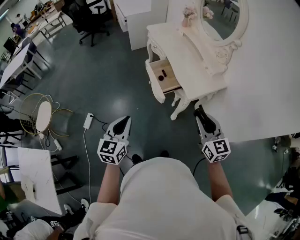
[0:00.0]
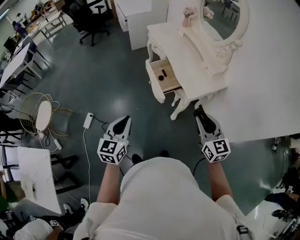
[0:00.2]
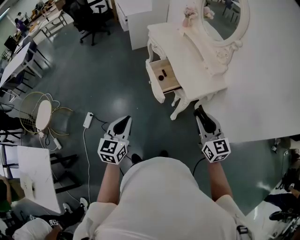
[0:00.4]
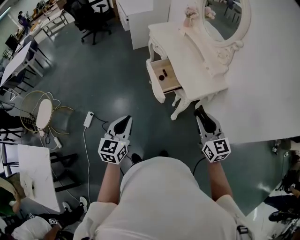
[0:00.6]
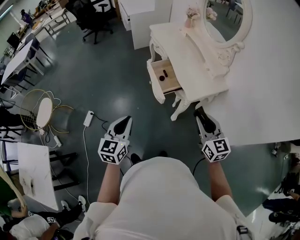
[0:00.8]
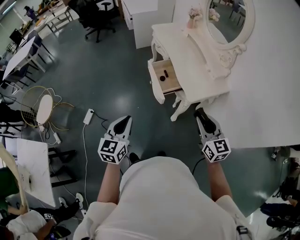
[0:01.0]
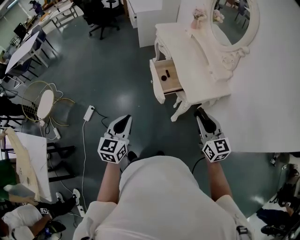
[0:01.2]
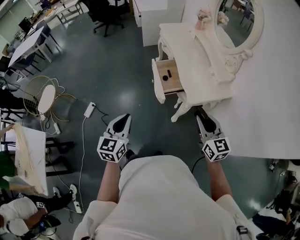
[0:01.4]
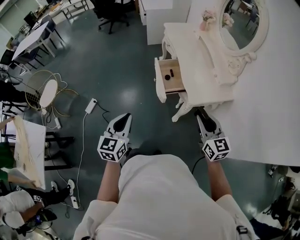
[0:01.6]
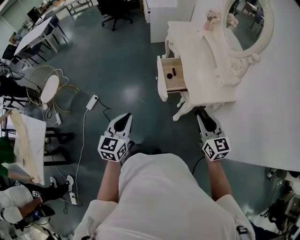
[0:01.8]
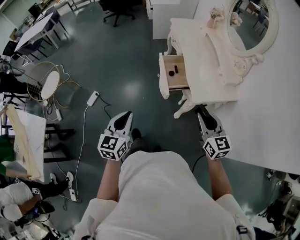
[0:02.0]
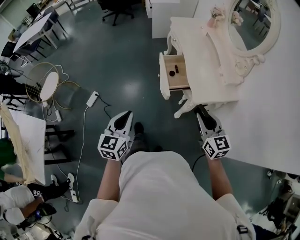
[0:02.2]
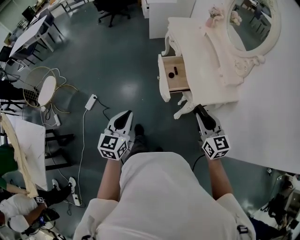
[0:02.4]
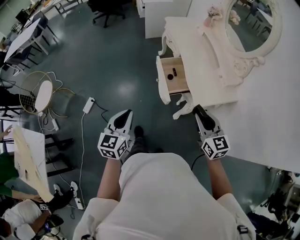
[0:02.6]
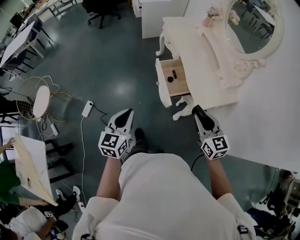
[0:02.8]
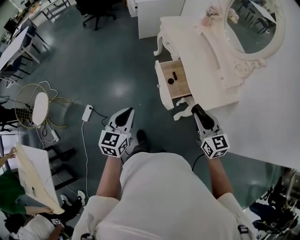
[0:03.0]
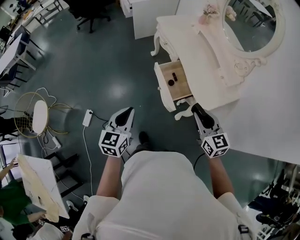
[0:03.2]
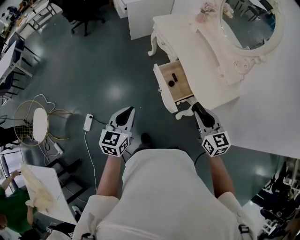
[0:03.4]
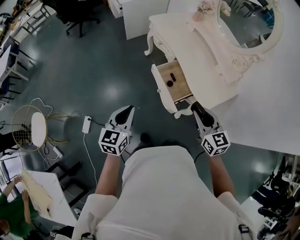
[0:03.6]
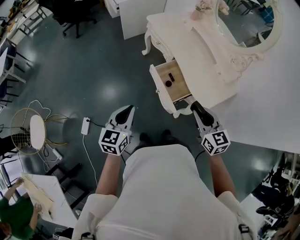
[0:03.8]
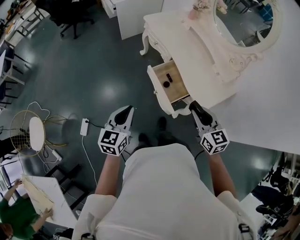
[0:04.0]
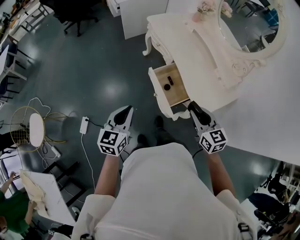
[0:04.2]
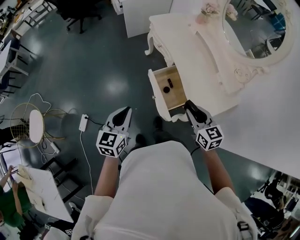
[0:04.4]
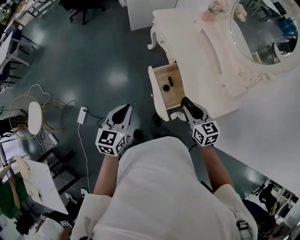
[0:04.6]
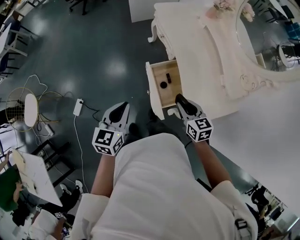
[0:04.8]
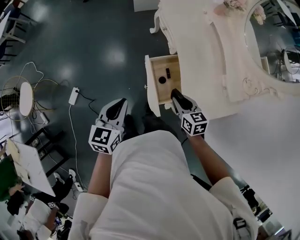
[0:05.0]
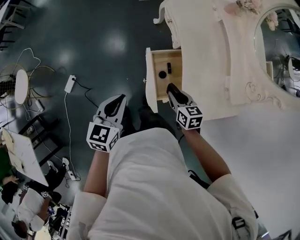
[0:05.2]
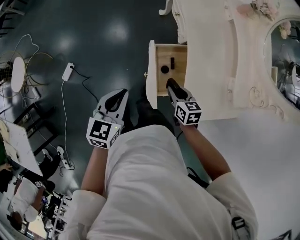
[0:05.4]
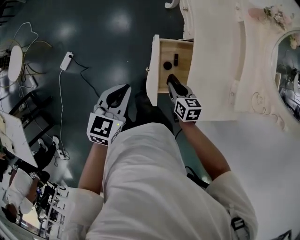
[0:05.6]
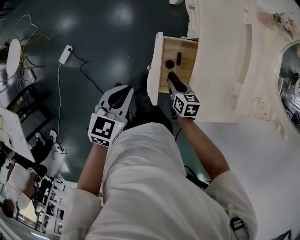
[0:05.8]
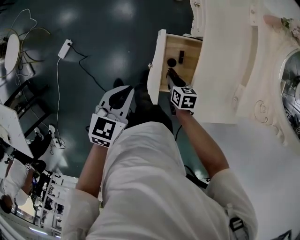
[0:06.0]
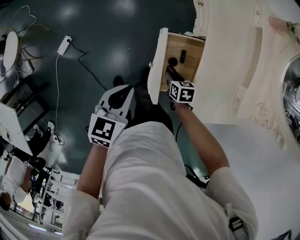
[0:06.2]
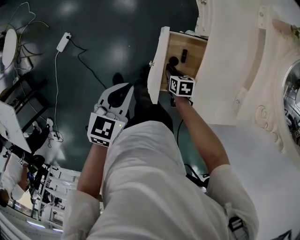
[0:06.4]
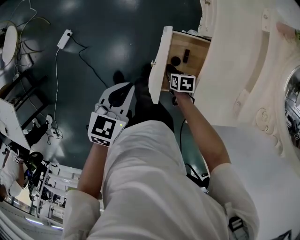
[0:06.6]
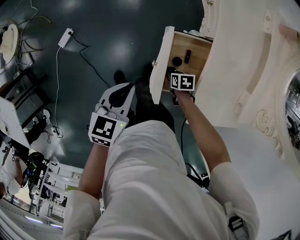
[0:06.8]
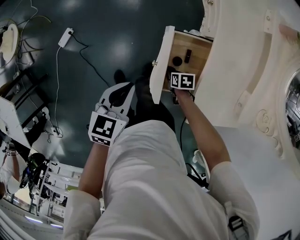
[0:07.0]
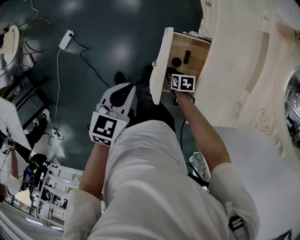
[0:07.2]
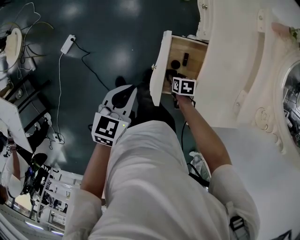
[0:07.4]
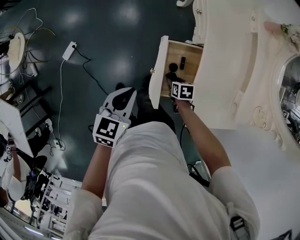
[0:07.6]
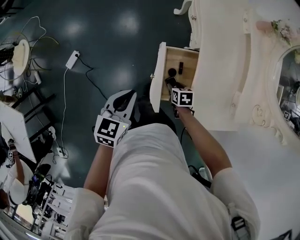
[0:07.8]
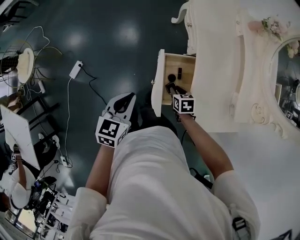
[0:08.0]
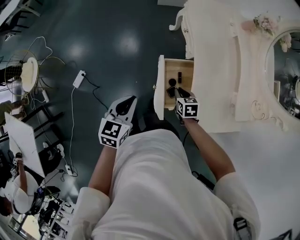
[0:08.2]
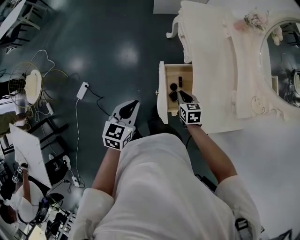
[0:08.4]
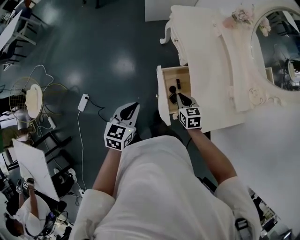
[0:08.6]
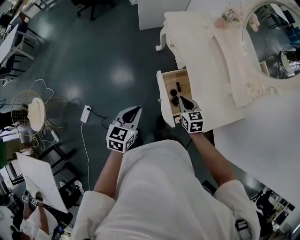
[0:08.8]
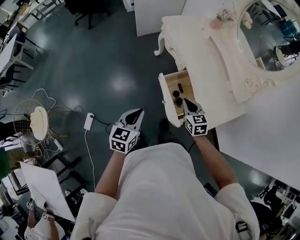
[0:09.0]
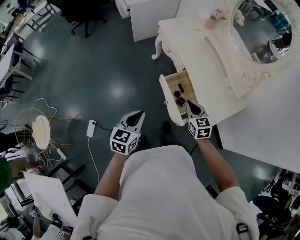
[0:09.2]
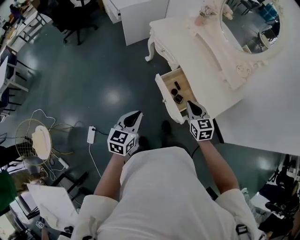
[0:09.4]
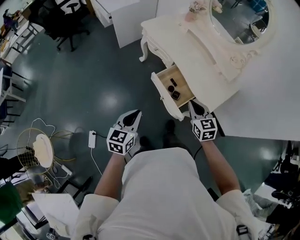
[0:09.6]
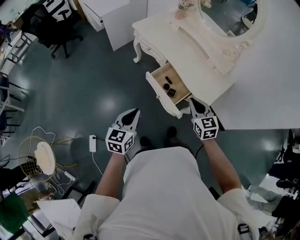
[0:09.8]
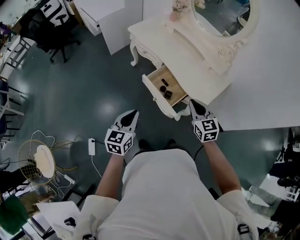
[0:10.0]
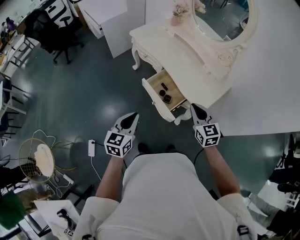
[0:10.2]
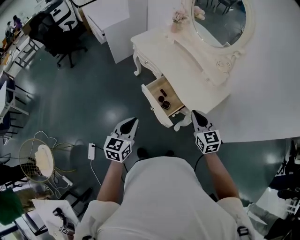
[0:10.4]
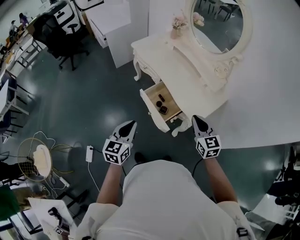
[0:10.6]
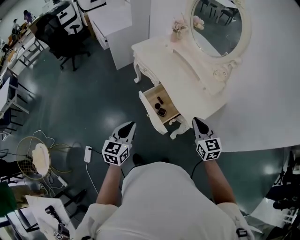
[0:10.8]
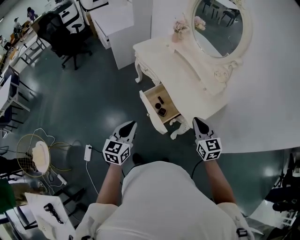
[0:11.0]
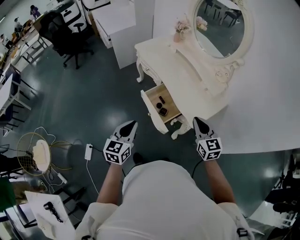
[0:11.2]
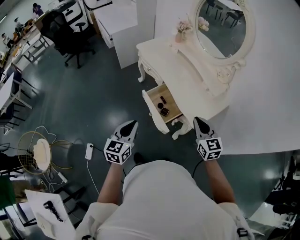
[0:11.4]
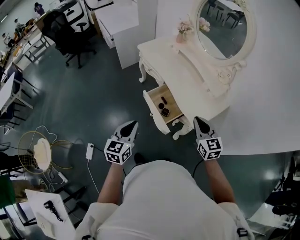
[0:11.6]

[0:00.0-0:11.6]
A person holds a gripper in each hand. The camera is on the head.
0.0 to 1.4 s: The right gripper changes place by approximately 5 cm.
1.4 to 2.8 s: The right gripper is displaced forward and to the left by approximately 10 cm. Meanwhile the left gripper heads forward, covering roughly 10 cm.
2.8 to 4.4 s: Both grippers move forward, approximately 15 cm.
4.4 to 5.8 s: The right gripper travels downward and forward by some 30 cm, and swivels some 40 degrees. Meanwhile the left gripper shifts some 15 cm downward and to the right, and changes its angle by some 20 degrees.
5.8 to 7.2 s: The right gripper heads downward, covering roughly 15 cm, and rotates some 30 degrees.
7.2 to 8.8 s: The left gripper heads upward, covering approximately 10 cm, and rotates some 20 degrees. The right gripper goes approximately 25 cm upward, tips its fingers upward by roughly 30 degrees, and closes its fingers.
8.8 to 10.2 s: The left gripper goes about 10 cm upward and backward, and swivels about 20 degrees. Meanwhile the right gripper heads upward, backward and to the right, covering about 20 cm, and turns by approximately 20 degrees.
10.2 to 11.6 s: The left gripper changes place by about 5 cm. Meanwhile the right gripper heads to the right, covering roughly 5 cm.

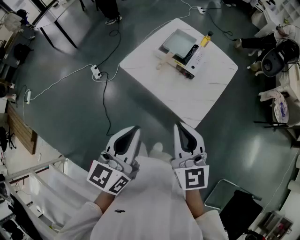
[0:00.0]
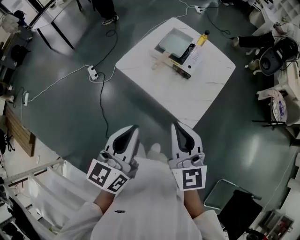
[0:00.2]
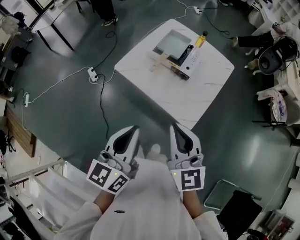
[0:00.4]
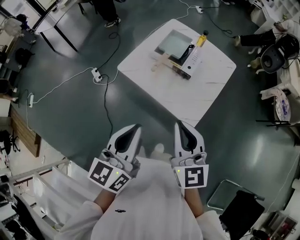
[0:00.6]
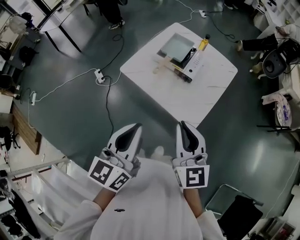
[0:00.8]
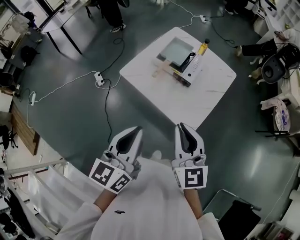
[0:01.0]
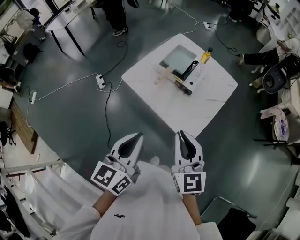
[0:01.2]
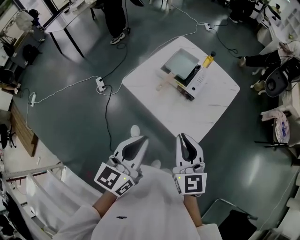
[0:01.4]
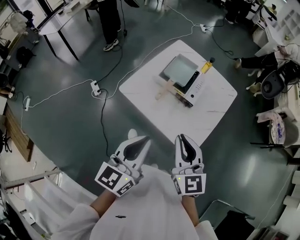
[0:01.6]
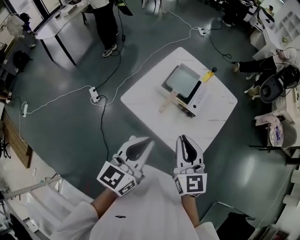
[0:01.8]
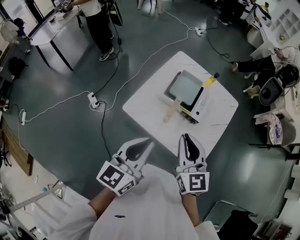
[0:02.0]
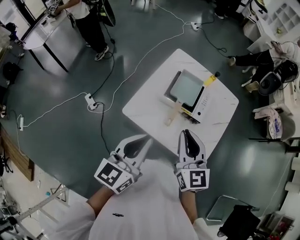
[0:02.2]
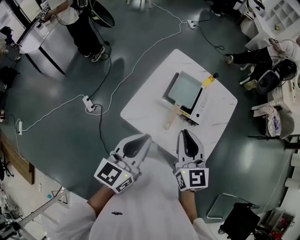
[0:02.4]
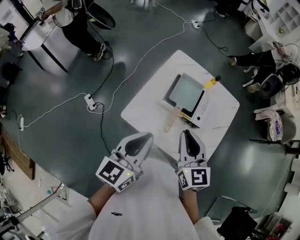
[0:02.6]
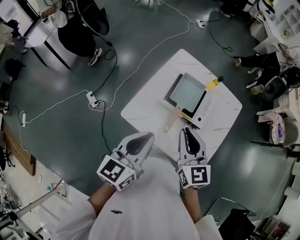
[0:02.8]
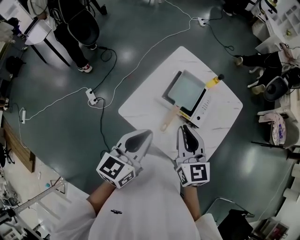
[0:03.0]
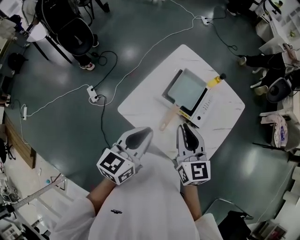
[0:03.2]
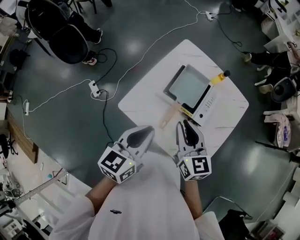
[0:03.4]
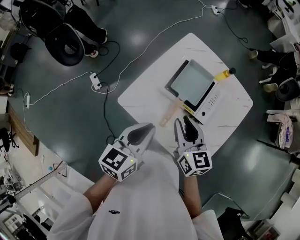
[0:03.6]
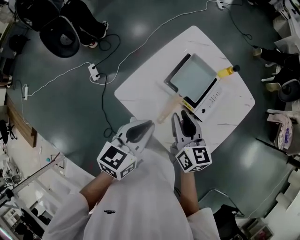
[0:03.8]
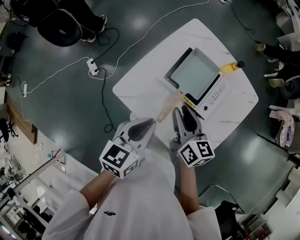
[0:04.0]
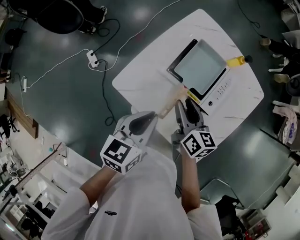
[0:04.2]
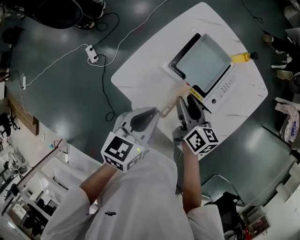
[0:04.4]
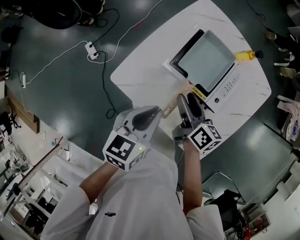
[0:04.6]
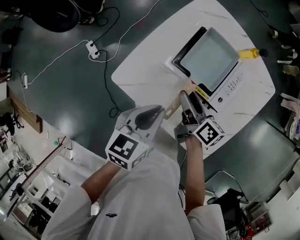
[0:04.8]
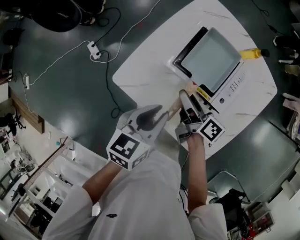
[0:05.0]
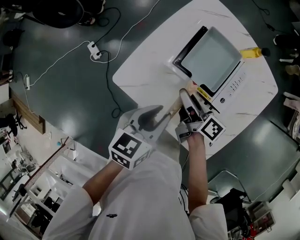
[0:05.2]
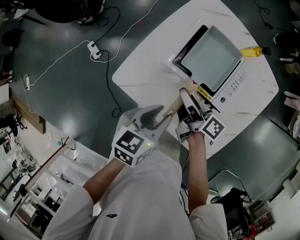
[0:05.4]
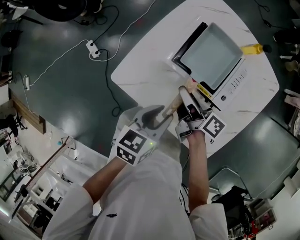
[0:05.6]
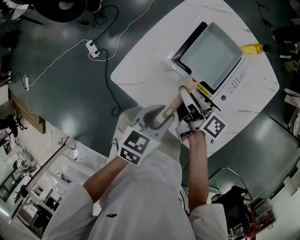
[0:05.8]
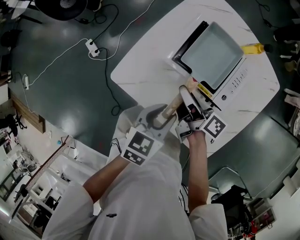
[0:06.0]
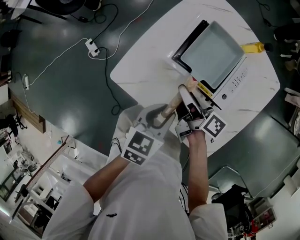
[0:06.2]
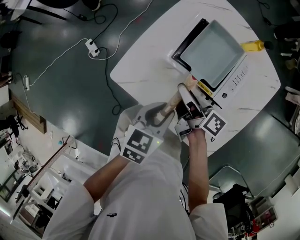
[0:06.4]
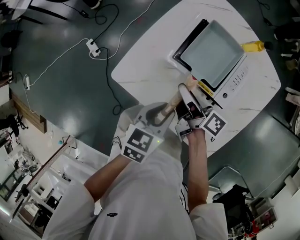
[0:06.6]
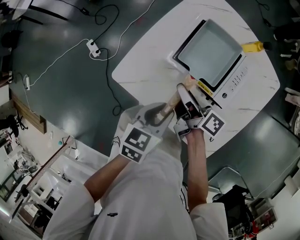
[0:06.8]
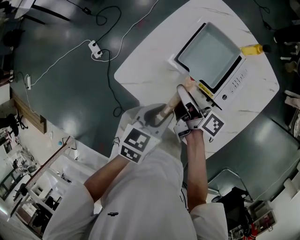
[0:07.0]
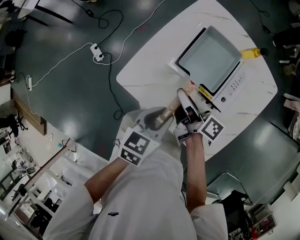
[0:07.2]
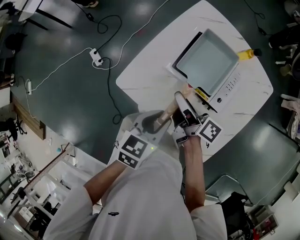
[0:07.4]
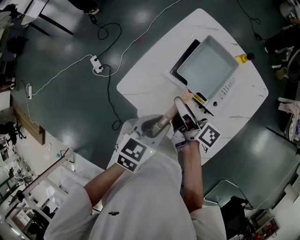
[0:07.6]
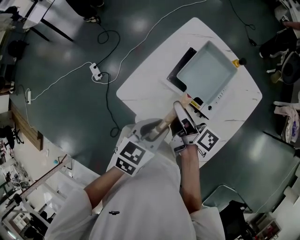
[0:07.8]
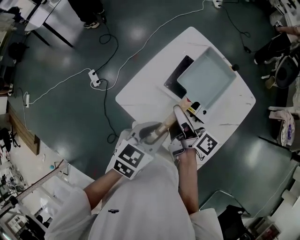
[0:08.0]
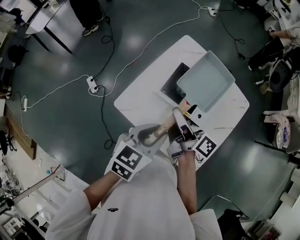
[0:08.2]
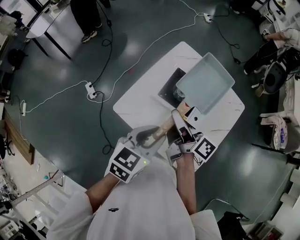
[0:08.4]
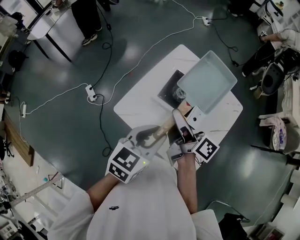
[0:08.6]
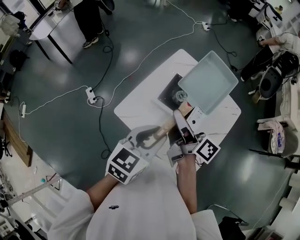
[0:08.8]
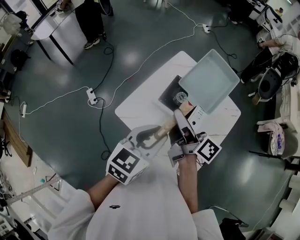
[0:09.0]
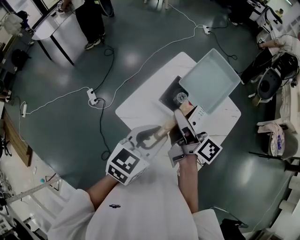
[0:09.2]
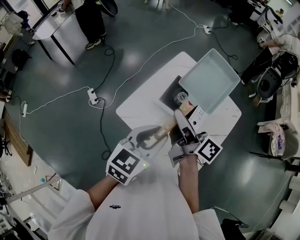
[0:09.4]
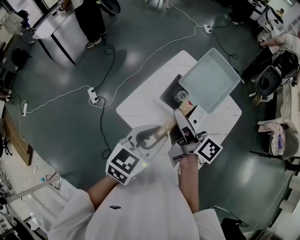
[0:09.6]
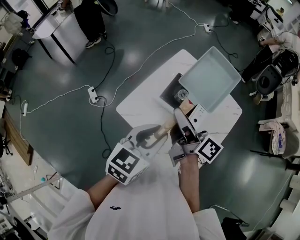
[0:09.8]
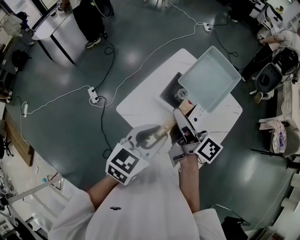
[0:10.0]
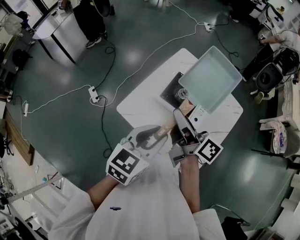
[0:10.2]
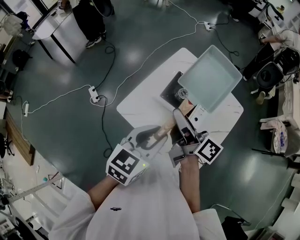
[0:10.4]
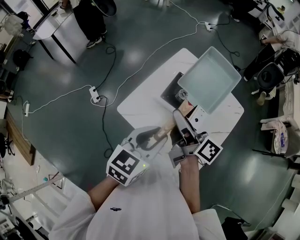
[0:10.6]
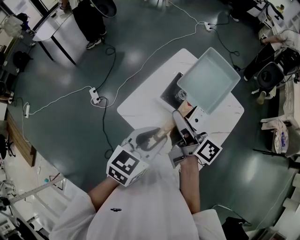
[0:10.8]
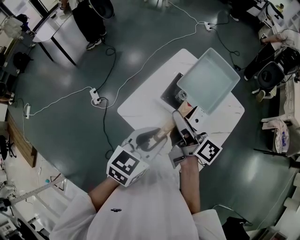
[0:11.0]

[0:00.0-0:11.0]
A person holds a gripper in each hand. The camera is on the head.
0.0 to 1.6 s: The two grippers go about 10 cm forward.
1.6 to 3.2 s: Both grippers move forward, approximately 20 cm.
3.2 to 4.8 s: The grippers both shift downward by roughly 20 cm. The right gripper rotates around the line of its fingers by approximately 50 degrees, clockwise from behind, and opens.
4.8 to 6.2 s: The left gripper goes some 5 cm downward, and opens up.
6.2 to 7.8 s: Both grippers travel together upward, about 10 cm.
7.8 to 9.4 s: The two grippers go some 15 cm upward.
9.4 to 11.0 s: There are only small adjustments of the grippers.

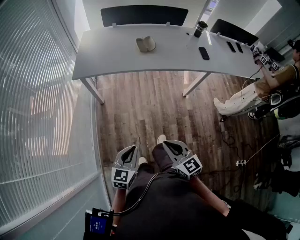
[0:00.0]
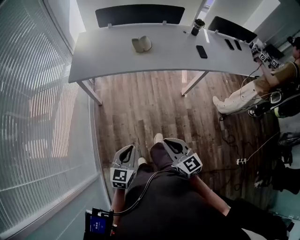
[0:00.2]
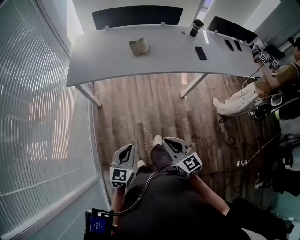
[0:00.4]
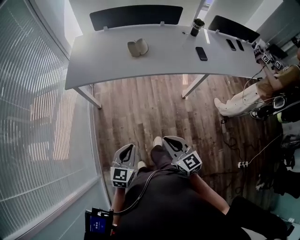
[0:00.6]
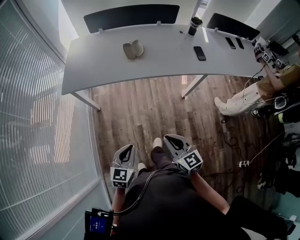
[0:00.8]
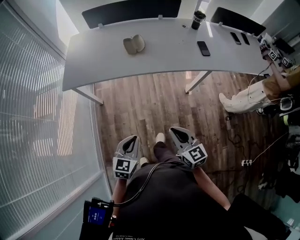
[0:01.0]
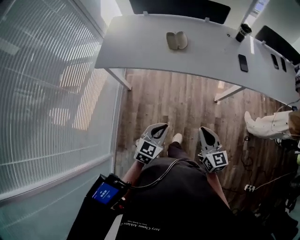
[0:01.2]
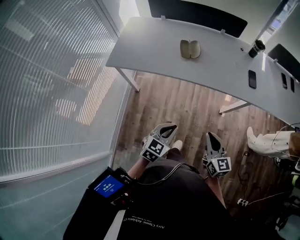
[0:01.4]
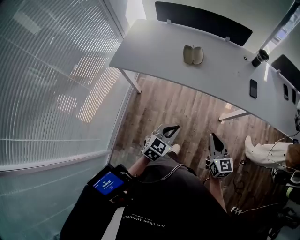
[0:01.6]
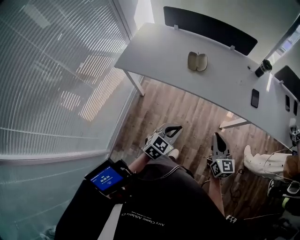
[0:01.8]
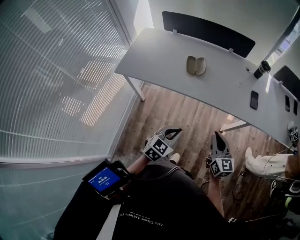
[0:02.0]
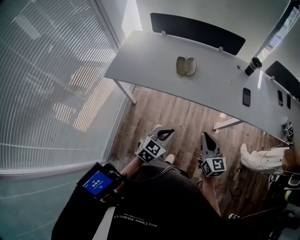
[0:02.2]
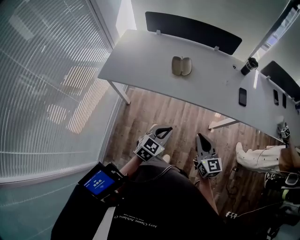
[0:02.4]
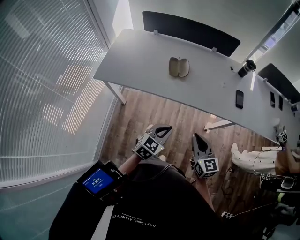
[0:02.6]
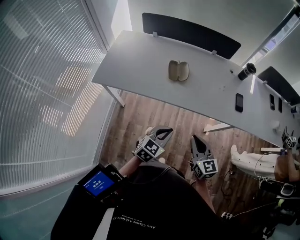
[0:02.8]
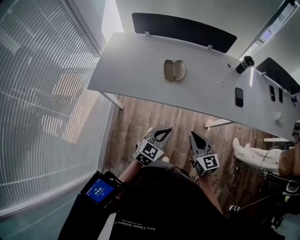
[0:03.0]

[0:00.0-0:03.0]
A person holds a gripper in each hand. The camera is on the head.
0.0 to 1.6 s: The two grippers go approximately 30 cm forward and to the right.
1.6 to 3.0 s: The right gripper travels forward and to the left by about 15 cm, while the left gripper moves forward, about 10 cm.
